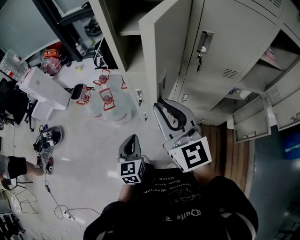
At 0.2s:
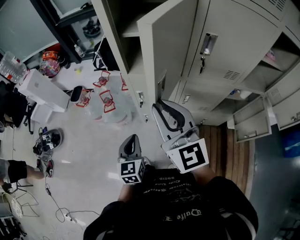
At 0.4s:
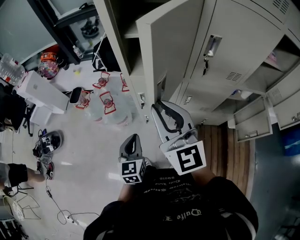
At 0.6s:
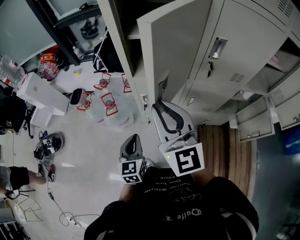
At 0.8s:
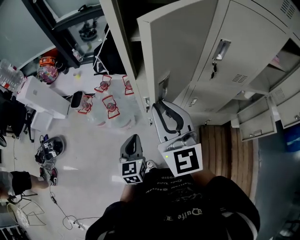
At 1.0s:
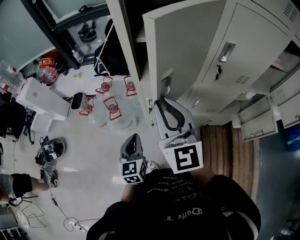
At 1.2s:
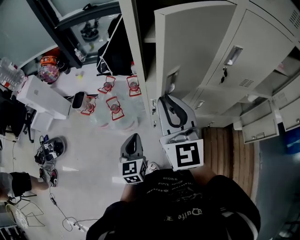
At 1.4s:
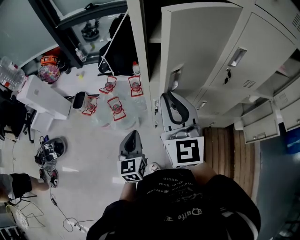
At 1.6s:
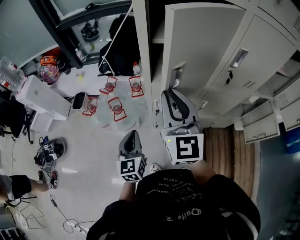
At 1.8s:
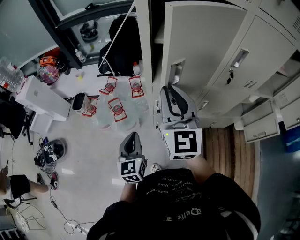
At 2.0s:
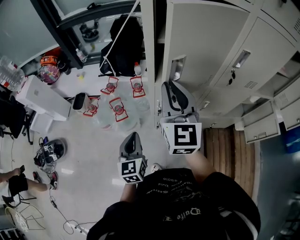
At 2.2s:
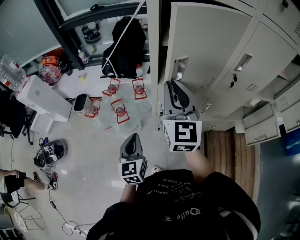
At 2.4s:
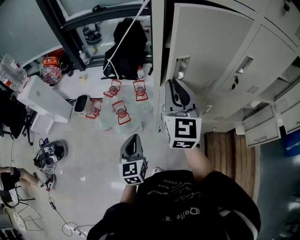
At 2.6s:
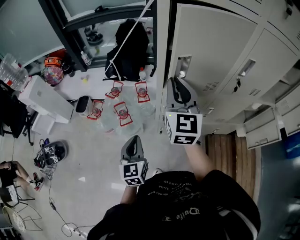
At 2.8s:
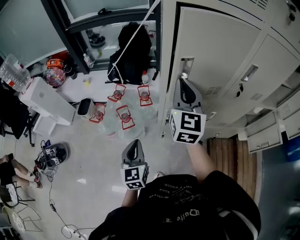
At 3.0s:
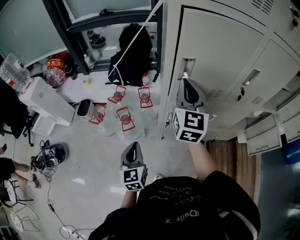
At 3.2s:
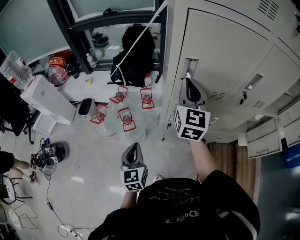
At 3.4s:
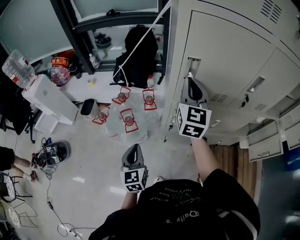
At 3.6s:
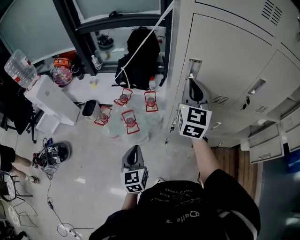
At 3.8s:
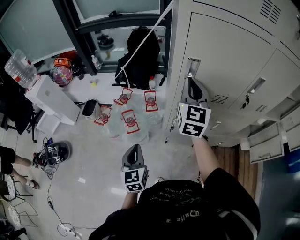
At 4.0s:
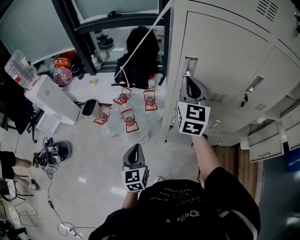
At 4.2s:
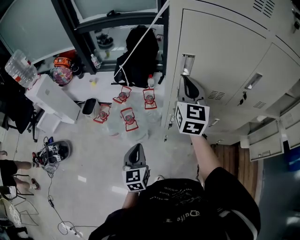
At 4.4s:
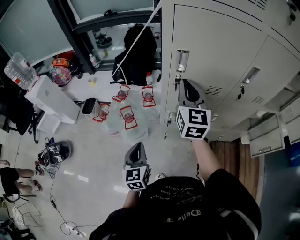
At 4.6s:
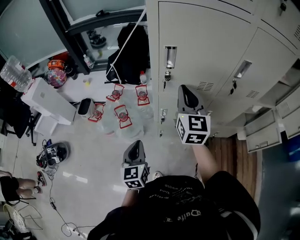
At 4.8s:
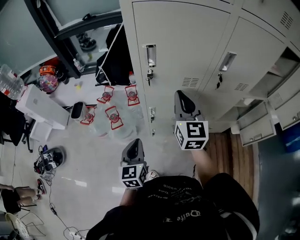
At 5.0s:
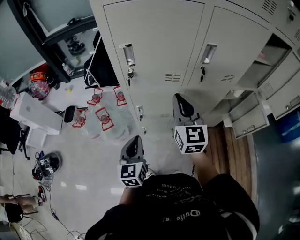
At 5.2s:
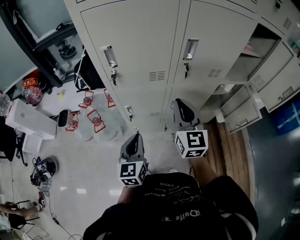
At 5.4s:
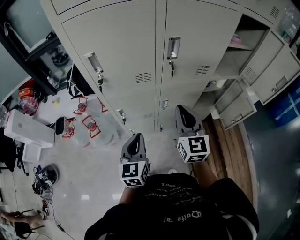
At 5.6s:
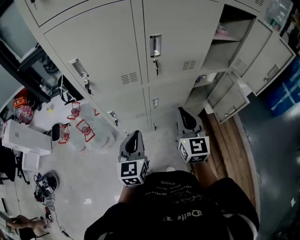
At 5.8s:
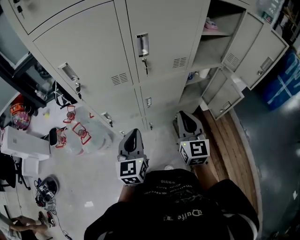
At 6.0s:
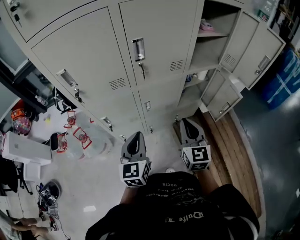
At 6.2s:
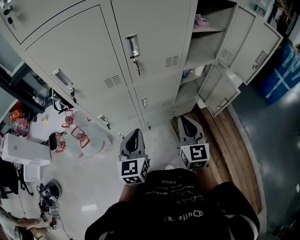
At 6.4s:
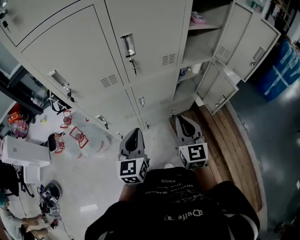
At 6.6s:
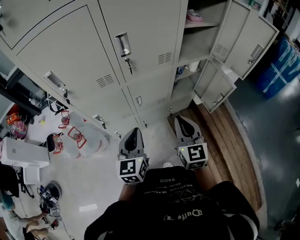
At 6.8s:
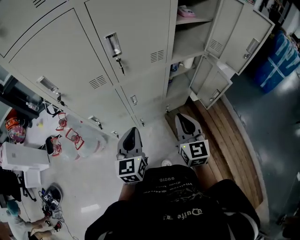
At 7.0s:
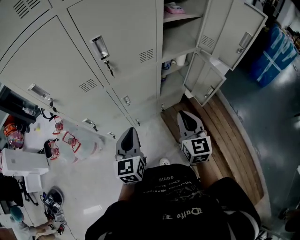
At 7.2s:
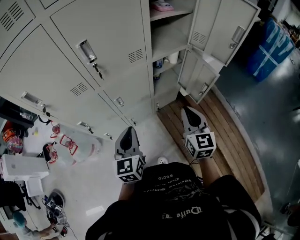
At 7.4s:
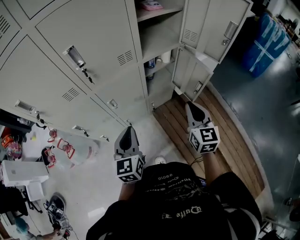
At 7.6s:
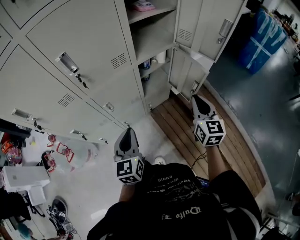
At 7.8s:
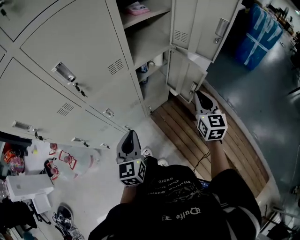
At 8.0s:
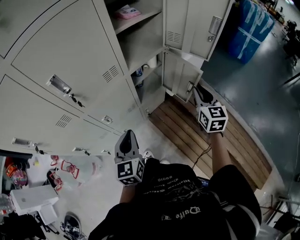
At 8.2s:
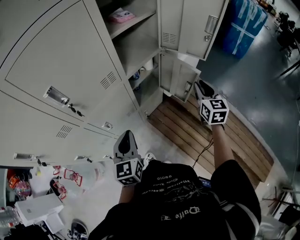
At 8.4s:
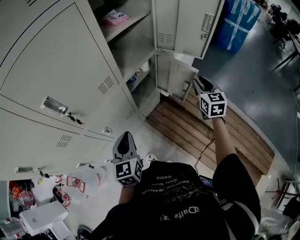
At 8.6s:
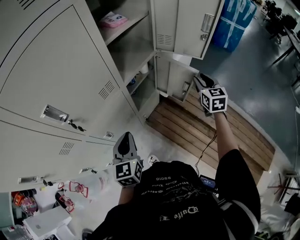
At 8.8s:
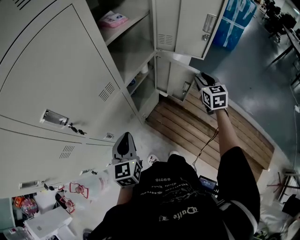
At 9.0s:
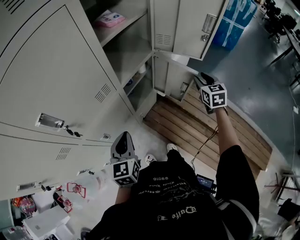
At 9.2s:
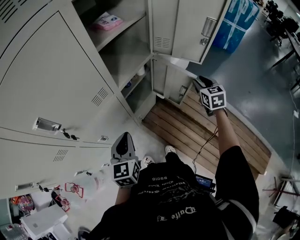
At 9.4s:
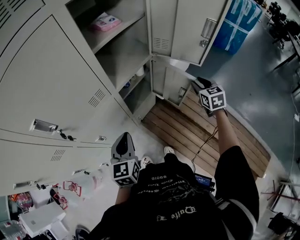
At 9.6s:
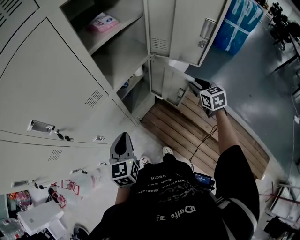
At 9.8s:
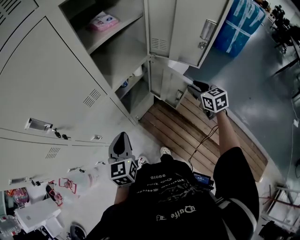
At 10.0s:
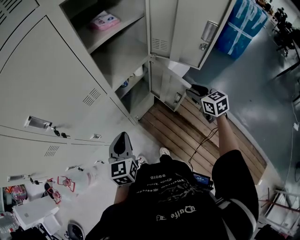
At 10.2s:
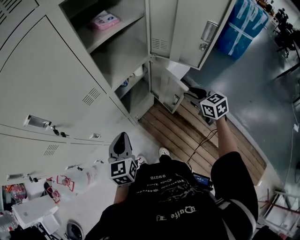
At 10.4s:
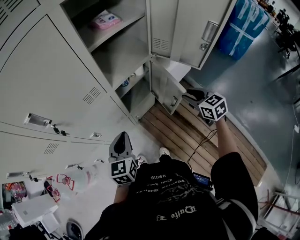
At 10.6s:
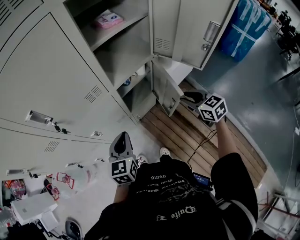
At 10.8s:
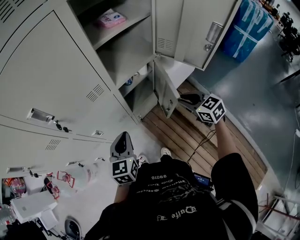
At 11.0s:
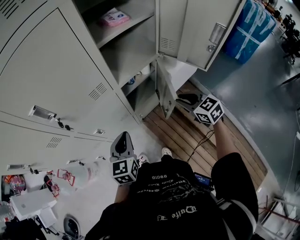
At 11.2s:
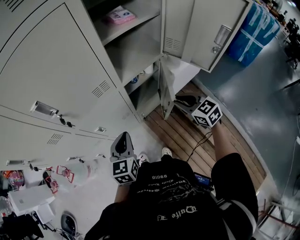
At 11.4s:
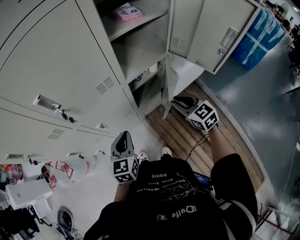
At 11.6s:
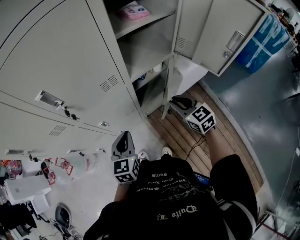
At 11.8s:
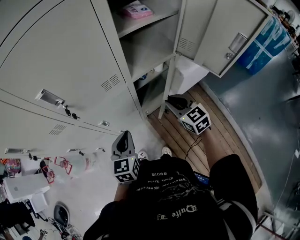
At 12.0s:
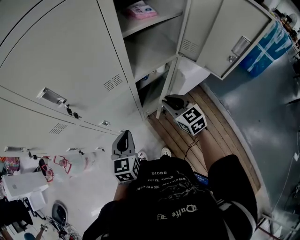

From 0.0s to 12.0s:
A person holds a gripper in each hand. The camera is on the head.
From 0.0s to 1.6s: The right gripper goes approximately 15 cm forward and to the left, and turns by approximately 20 degrees; the left gripper goes roughly 15 cm to the left and forward.
From 1.6s to 3.0s: The left gripper moves to the left, about 5 cm. The right gripper heads forward, covering about 10 cm.
From 3.0s to 4.4s: The grippers make only small movements.
From 4.4s to 6.0s: The right gripper goes some 40 cm to the right and backward, and turns by about 20 degrees, while the left gripper is displaced to the right by some 35 cm, and swivels about 30 degrees.
From 6.0s to 7.6s: The left gripper heads to the right, covering some 15 cm; the right gripper moves to the right, roughly 25 cm.
From 7.6s to 9.0s: The right gripper heads forward and to the right, covering some 20 cm, turns by some 20 degrees, and opens up. The left gripper is displaced forward by approximately 15 cm.
From 9.0s to 10.4s: The left gripper moves to the right, approximately 5 cm. Meanwhile the right gripper changes place by about 5 cm, and changes its angle by roughly 30 degrees.
From 10.4s to 12.0s: The right gripper moves to the left, approximately 15 cm; the left gripper changes place by about 5 cm.

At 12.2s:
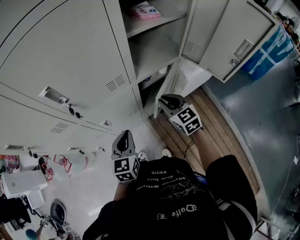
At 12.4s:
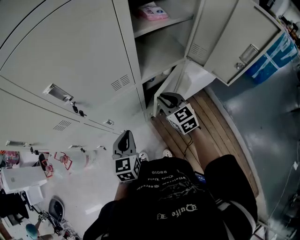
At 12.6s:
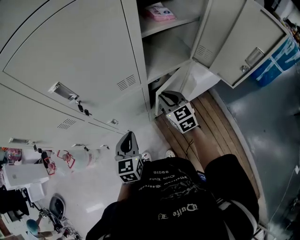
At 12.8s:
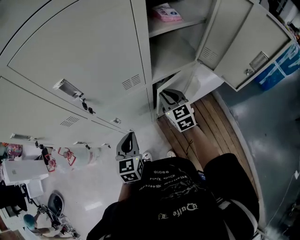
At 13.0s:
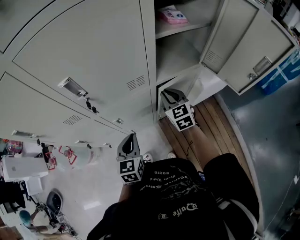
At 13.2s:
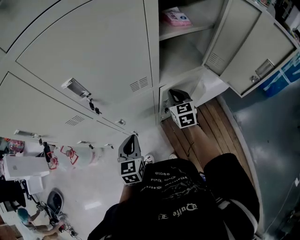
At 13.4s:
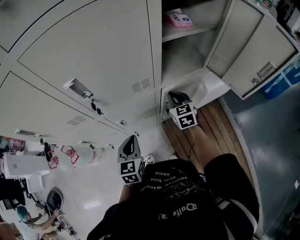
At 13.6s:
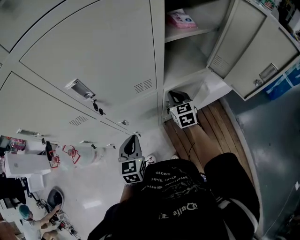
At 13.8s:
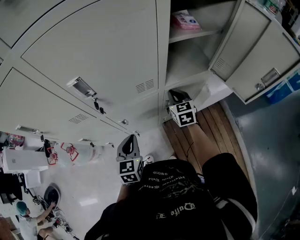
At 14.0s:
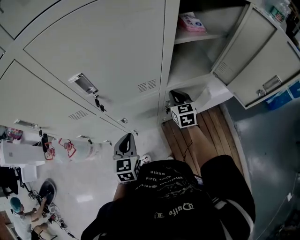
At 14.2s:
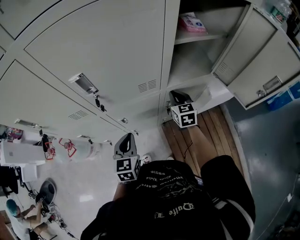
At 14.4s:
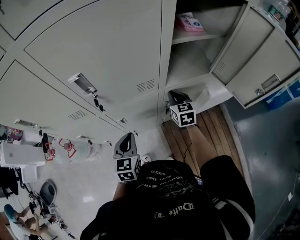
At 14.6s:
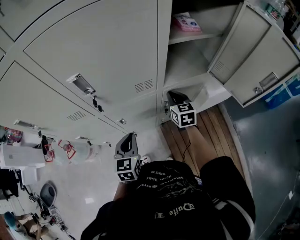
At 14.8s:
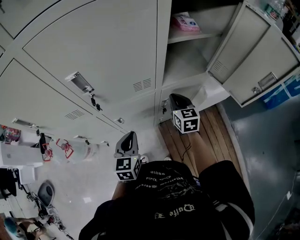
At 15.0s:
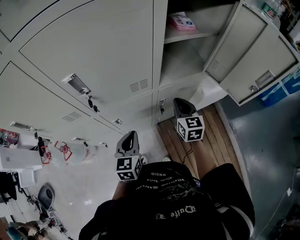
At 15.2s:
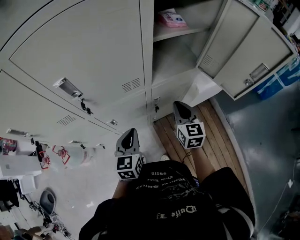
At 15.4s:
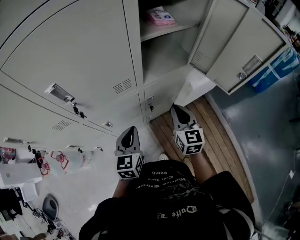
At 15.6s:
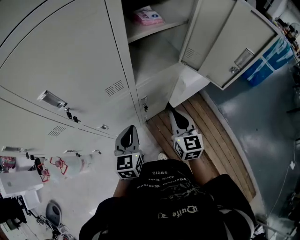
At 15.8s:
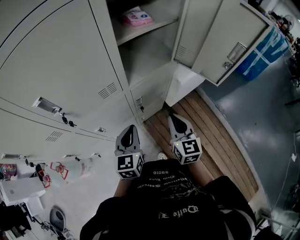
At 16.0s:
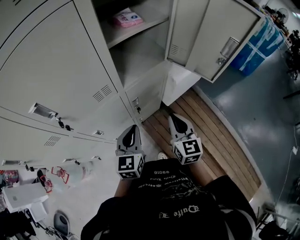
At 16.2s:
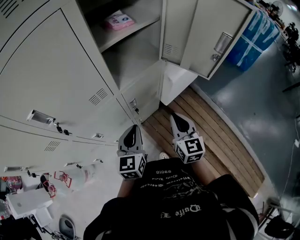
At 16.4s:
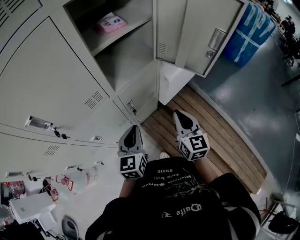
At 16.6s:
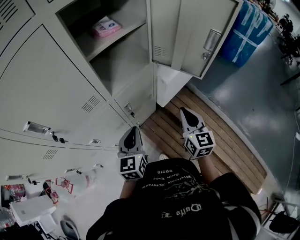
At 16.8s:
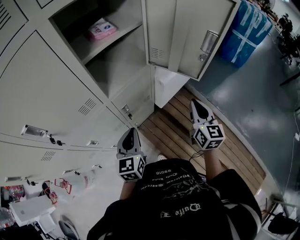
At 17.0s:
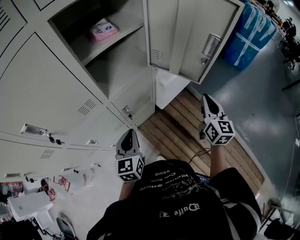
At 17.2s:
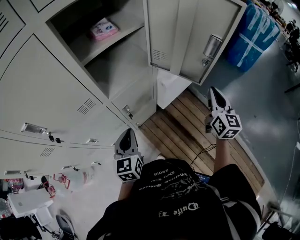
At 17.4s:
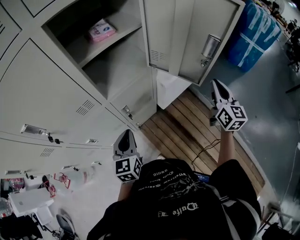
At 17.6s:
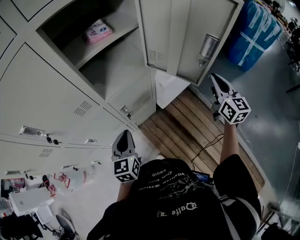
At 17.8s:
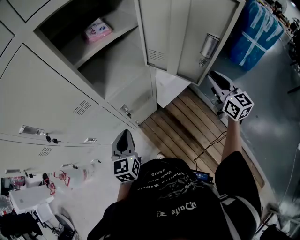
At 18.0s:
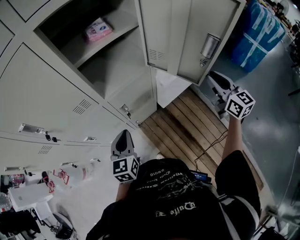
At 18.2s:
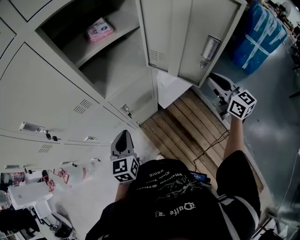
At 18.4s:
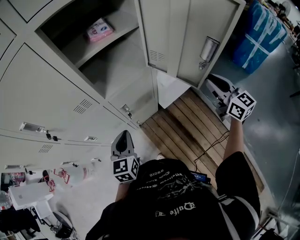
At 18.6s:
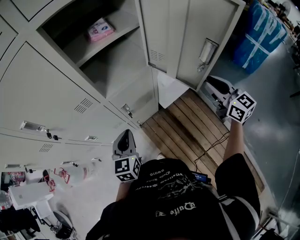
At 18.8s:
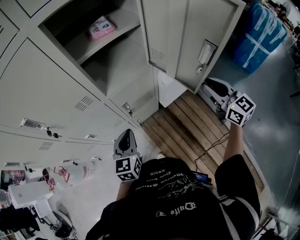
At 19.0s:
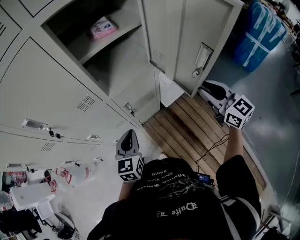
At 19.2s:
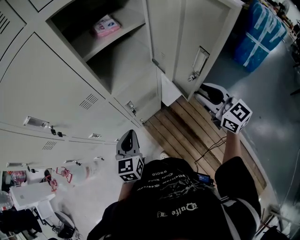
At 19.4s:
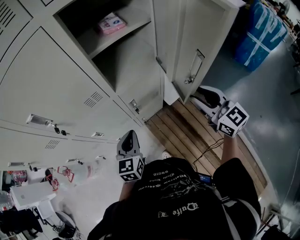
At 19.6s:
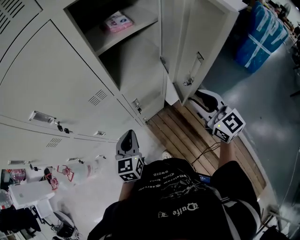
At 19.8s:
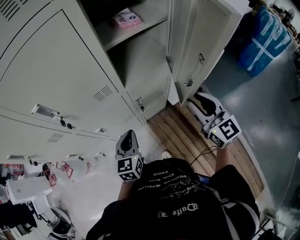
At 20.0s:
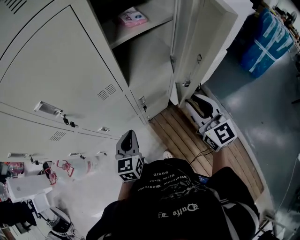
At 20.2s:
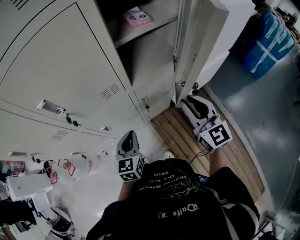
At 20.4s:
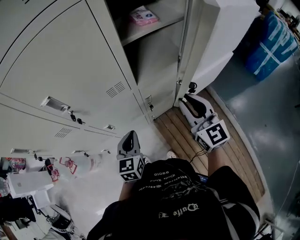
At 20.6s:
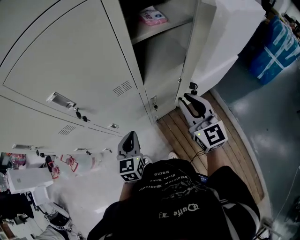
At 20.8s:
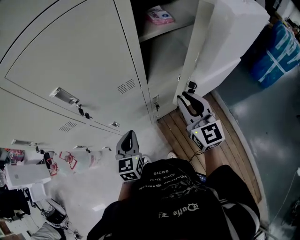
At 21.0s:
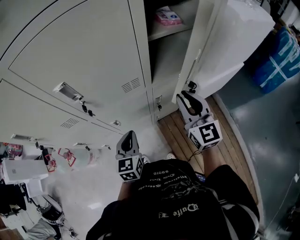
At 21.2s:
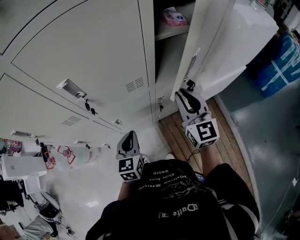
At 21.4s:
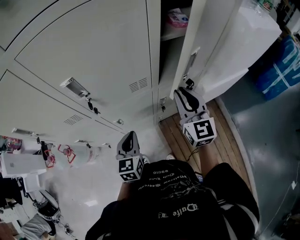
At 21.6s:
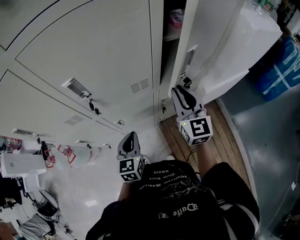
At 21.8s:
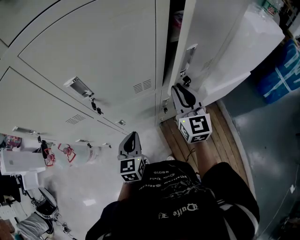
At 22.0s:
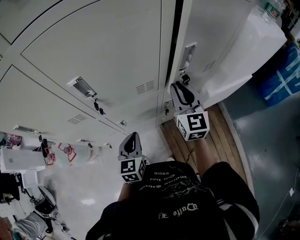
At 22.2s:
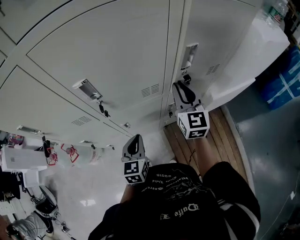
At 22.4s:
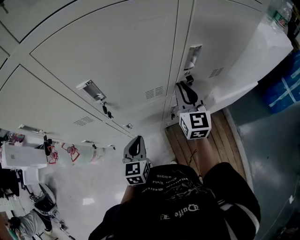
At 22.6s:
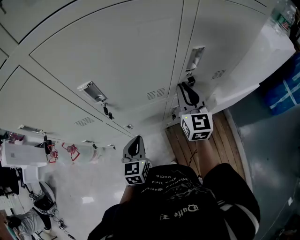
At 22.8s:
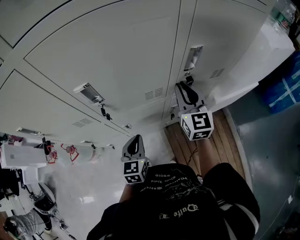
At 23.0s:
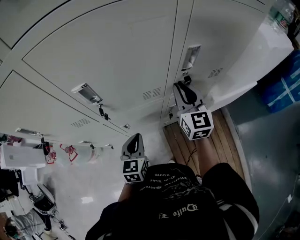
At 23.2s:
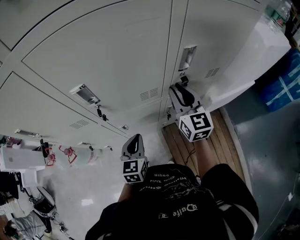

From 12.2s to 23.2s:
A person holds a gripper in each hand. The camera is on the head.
From 12.2s to 13.8s: The right gripper travels forward by some 10 cm. The left gripper shifts some 5 cm to the left.
From 13.8s to 15.4s: The left gripper travels to the right by roughly 10 cm. Meanwhile the right gripper goes about 15 cm backward, to the right and upward.
From 15.4s to 17.0s: The left gripper goes some 10 cm to the right, while the right gripper shifts about 25 cm to the right, and changes its angle by approximately 20 degrees.
From 17.0s to 18.4s: The right gripper goes about 5 cm forward, and swivels roughly 30 degrees.
From 18.4s to 20.0s: The left gripper travels to the left by roughly 10 cm, while the right gripper shifts some 20 cm to the left.
From 20.0s to 21.6s: The left gripper shifts some 10 cm to the left. The right gripper goes approximately 15 cm to the left and forward.
From 21.6s to 23.2s: The right gripper shifts roughly 5 cm forward.

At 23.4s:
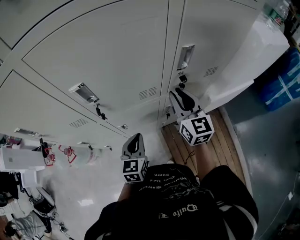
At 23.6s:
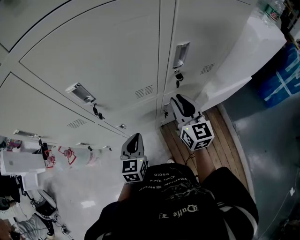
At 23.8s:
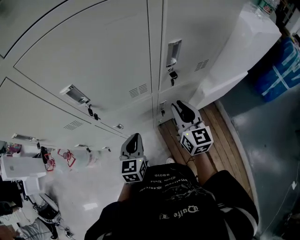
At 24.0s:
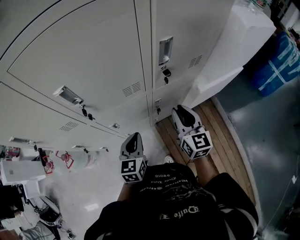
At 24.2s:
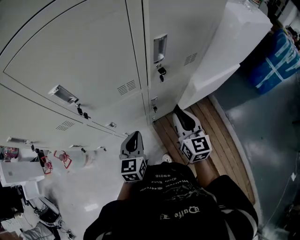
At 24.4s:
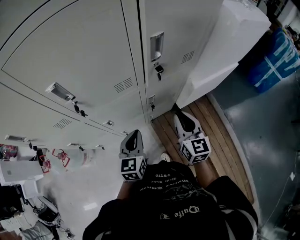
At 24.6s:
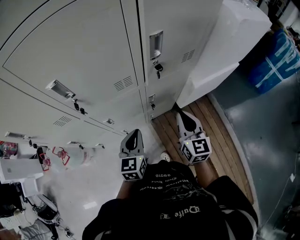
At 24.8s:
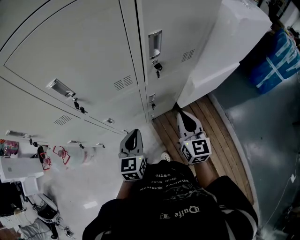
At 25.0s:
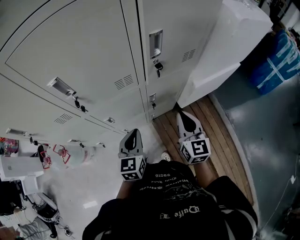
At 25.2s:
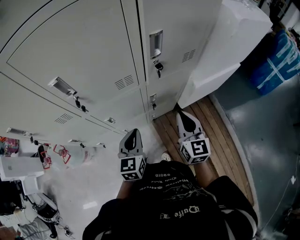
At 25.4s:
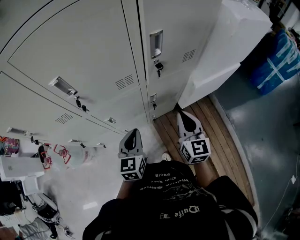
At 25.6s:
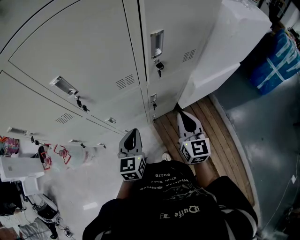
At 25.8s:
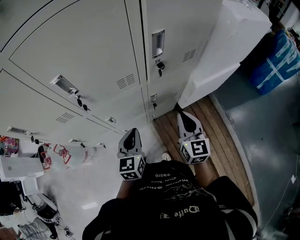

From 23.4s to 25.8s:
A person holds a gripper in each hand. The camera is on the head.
From 23.4s to 24.6s: The right gripper is displaced backward, to the right and downward by about 15 cm. The left gripper moves to the right, about 5 cm.
From 24.6s to 25.8s: The grippers make only small movements.
